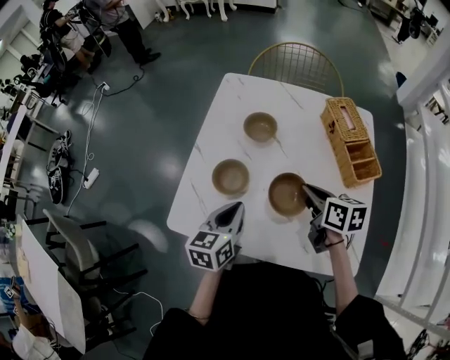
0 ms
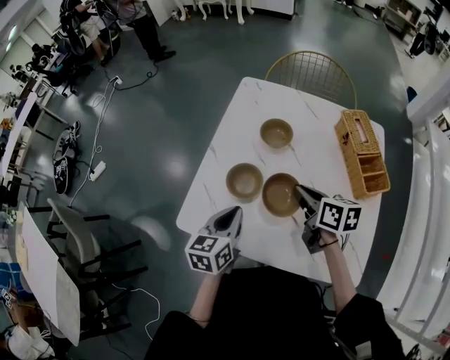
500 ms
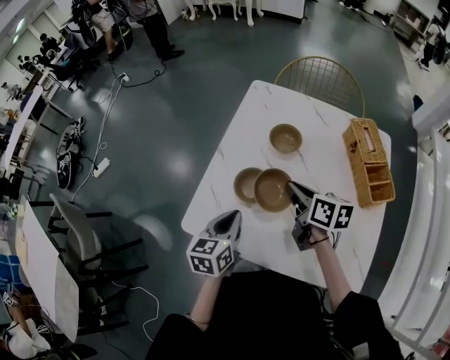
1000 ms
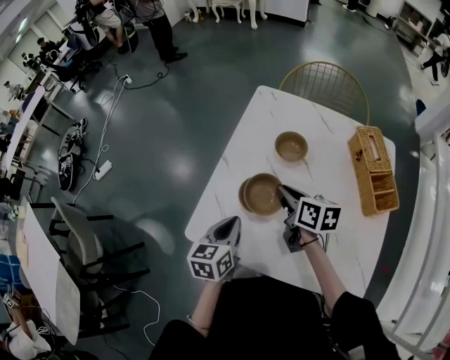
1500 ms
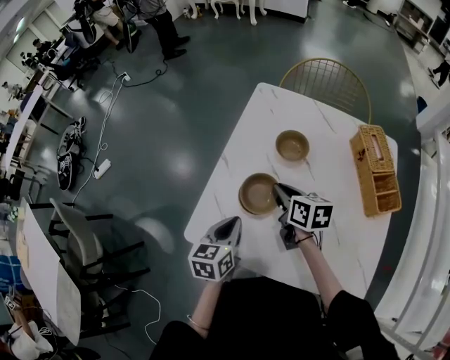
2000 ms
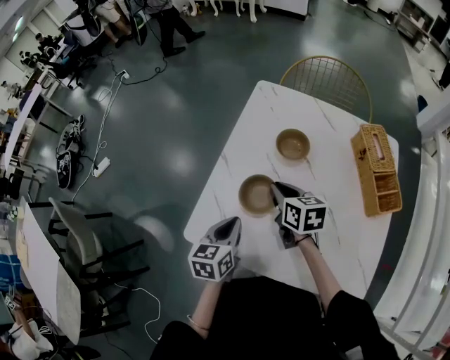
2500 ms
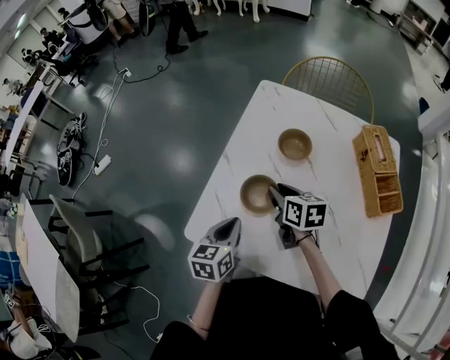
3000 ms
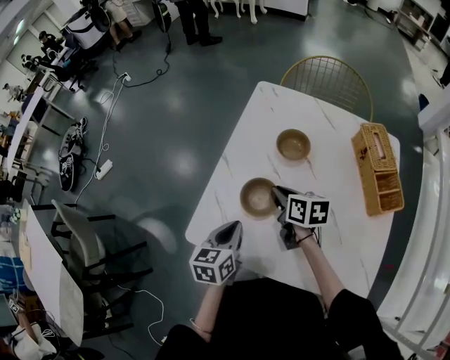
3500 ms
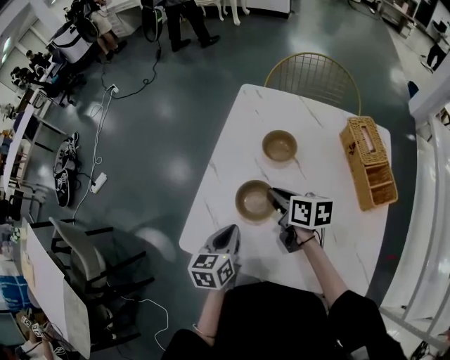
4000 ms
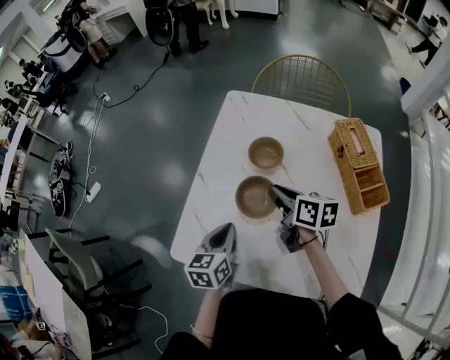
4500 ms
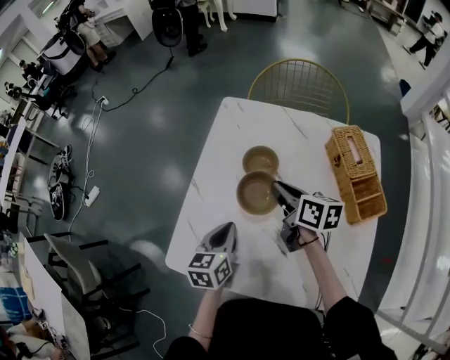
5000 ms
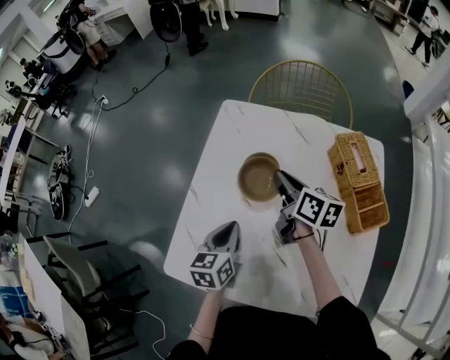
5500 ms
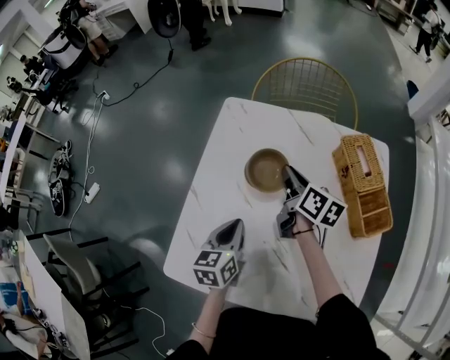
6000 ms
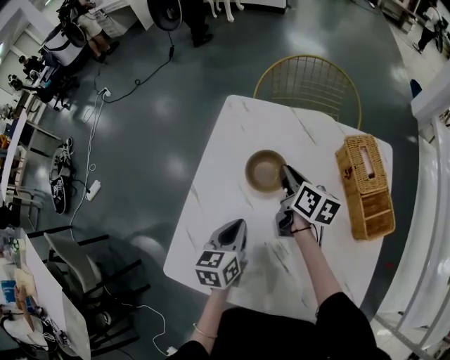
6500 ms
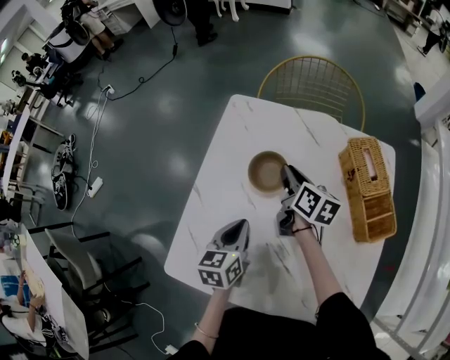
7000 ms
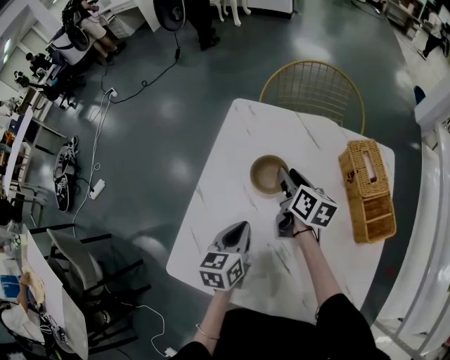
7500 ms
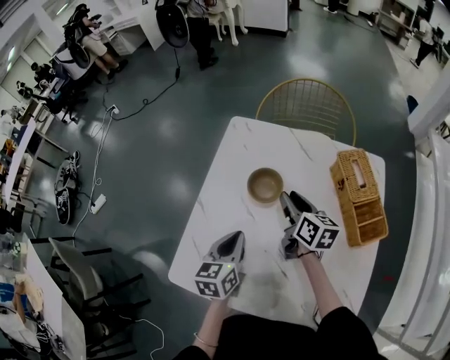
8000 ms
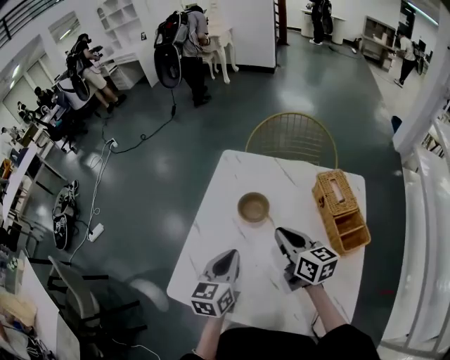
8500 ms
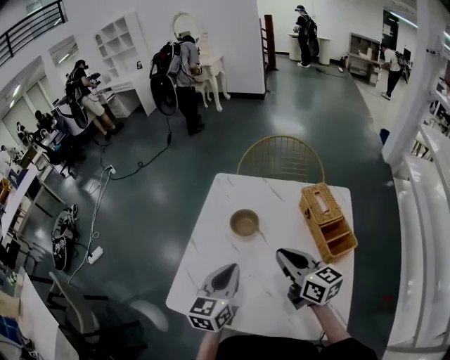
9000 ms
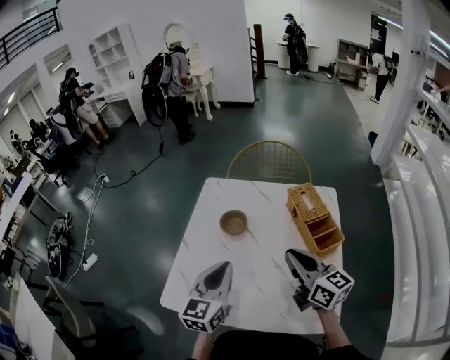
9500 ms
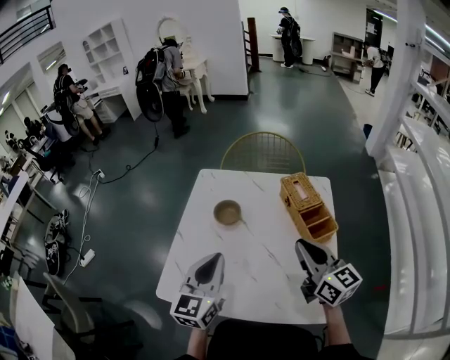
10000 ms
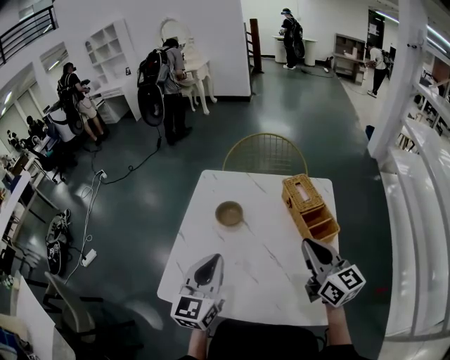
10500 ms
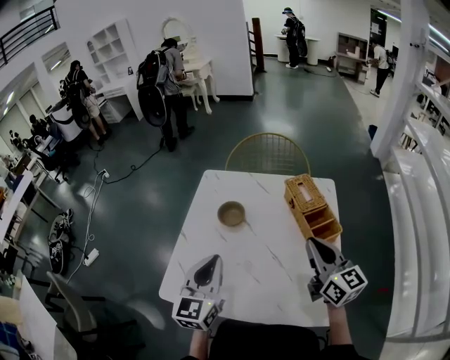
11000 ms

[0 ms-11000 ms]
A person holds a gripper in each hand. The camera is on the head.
0 ms to 2000 ms: The left gripper travels to the left by roughly 10 cm. The right gripper heads to the left and forward, covering approximately 20 cm.
2000 ms to 3500 ms: There are only small adjustments of the grippers.
3500 ms to 5500 ms: The left gripper travels forward and to the right by about 15 cm, while the right gripper moves to the right, forward and upward, about 20 cm, and swivels about 20 degrees.
5500 ms to 7500 ms: The right gripper moves approximately 5 cm, and opens.
7500 ms to 9000 ms: The left gripper heads upward and backward, covering about 15 cm, and turns by some 20 degrees. The right gripper moves backward and upward, approximately 25 cm, rotates roughly 30 degrees, and closes.
9000 ms to 11000 ms: The left gripper travels upward by approximately 5 cm, while the right gripper goes about 15 cm to the right, backward and upward, and rotates roughly 20 degrees.

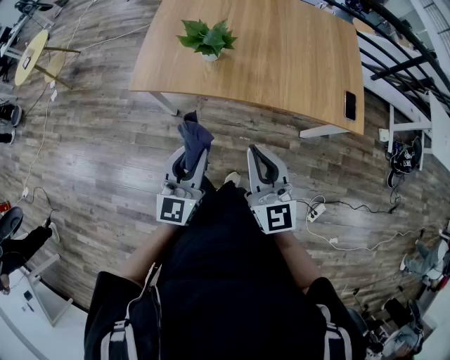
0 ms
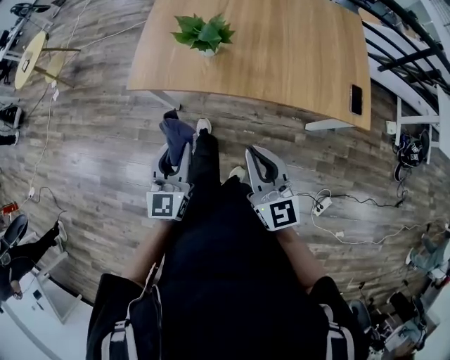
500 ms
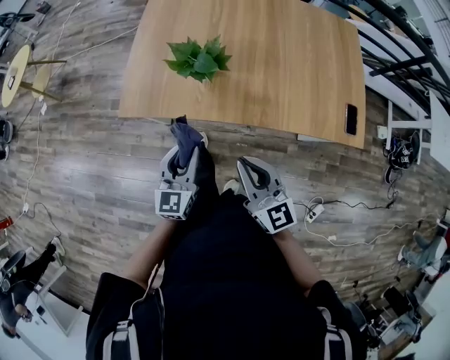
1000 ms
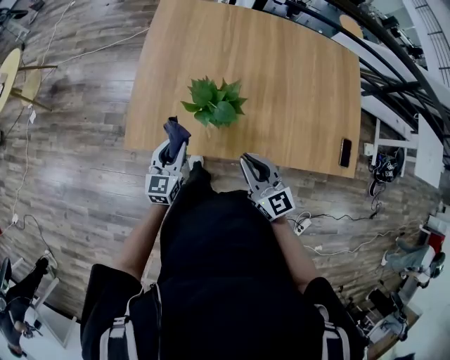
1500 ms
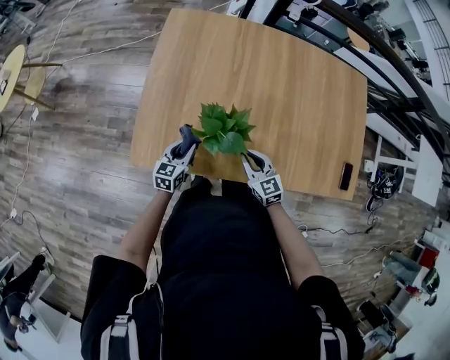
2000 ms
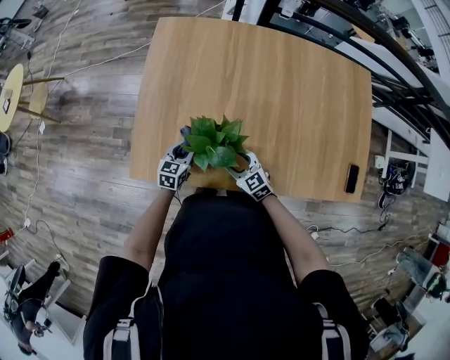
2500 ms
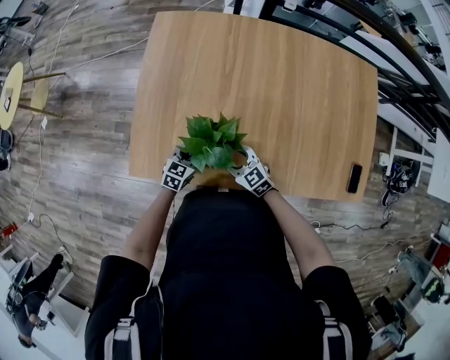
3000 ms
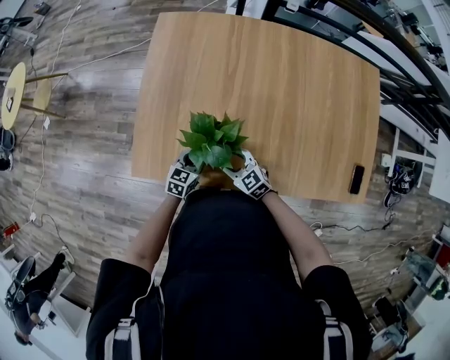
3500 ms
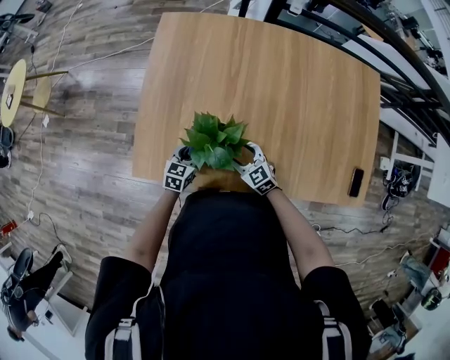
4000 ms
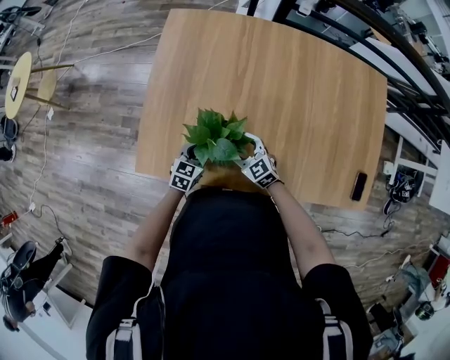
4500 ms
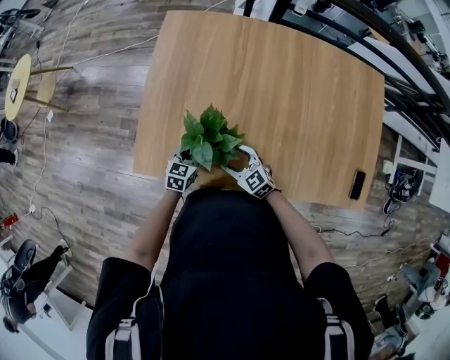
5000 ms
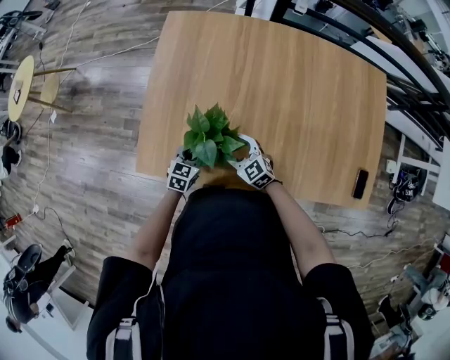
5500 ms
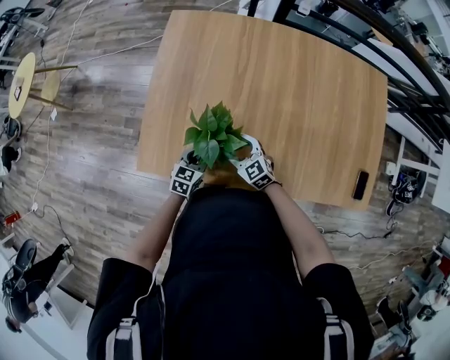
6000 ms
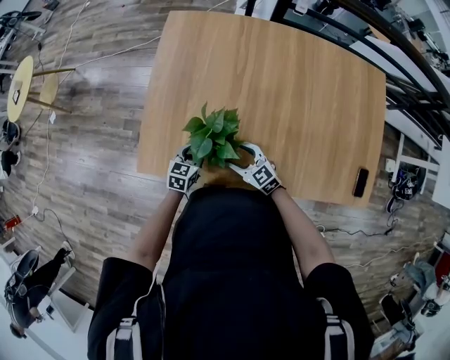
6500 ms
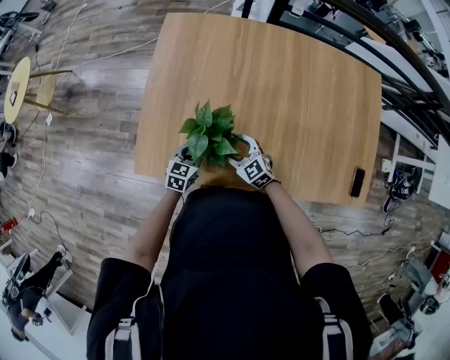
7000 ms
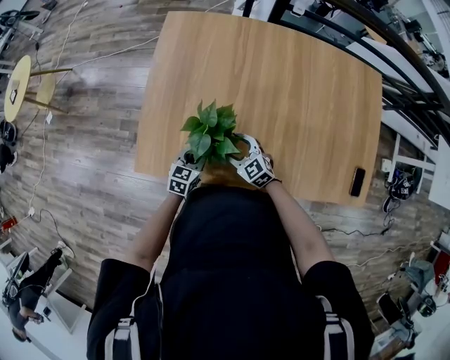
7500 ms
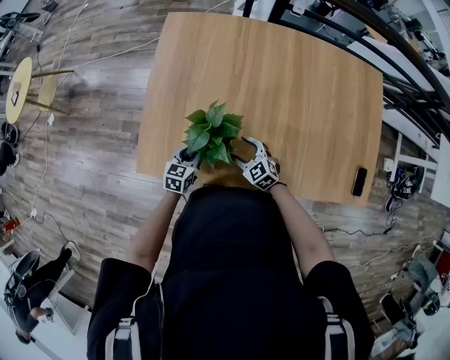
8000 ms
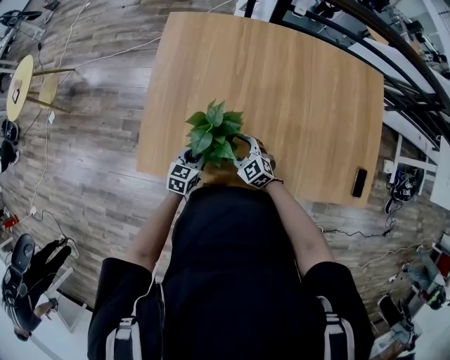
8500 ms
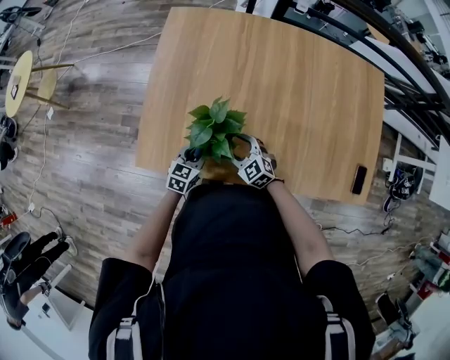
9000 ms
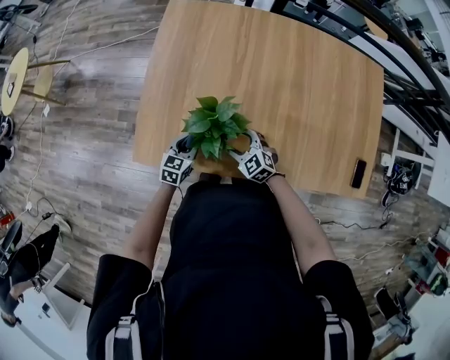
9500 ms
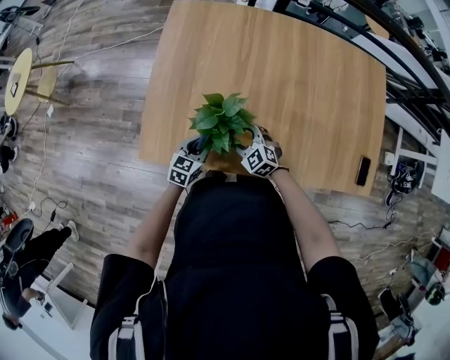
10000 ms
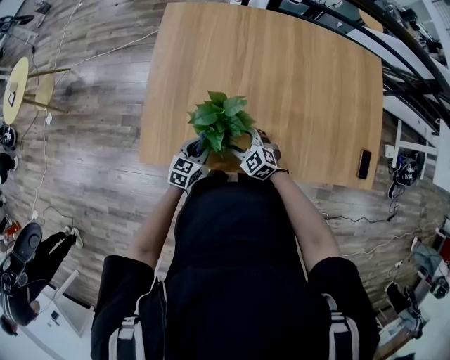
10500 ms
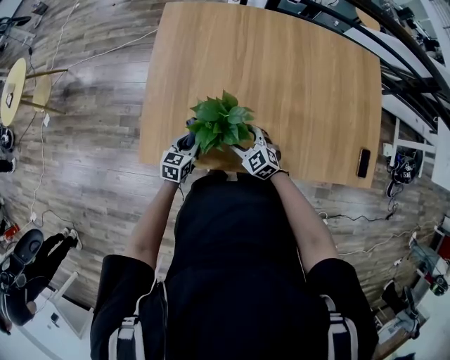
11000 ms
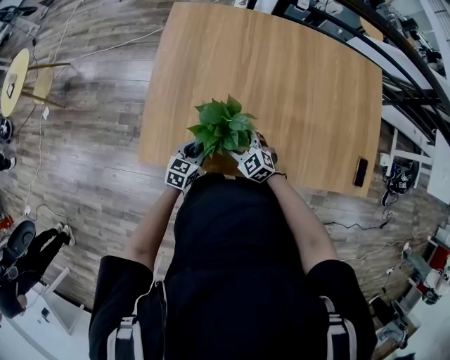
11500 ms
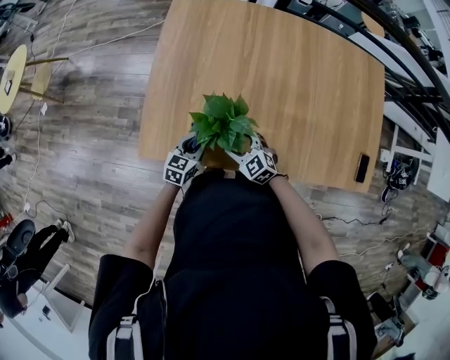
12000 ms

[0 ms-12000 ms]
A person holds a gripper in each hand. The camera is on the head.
0 ms to 2000 ms: The grippers both shift forward and downward by approximately 40 cm. The right gripper turns by some 30 degrees, while the left gripper changes its angle by approximately 30 degrees.
2000 ms to 4000 ms: The right gripper heads downward, covering roughly 5 cm, and opens up. Meanwhile the left gripper changes place by roughly 5 cm.
4000 ms to 10000 ms: The grippers make only small movements.
10000 ms to 12000 ms: The grippers stay close to where they were, moving slightly.

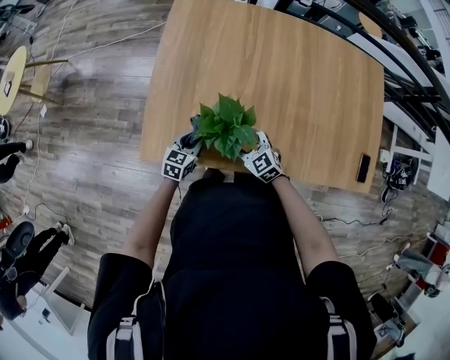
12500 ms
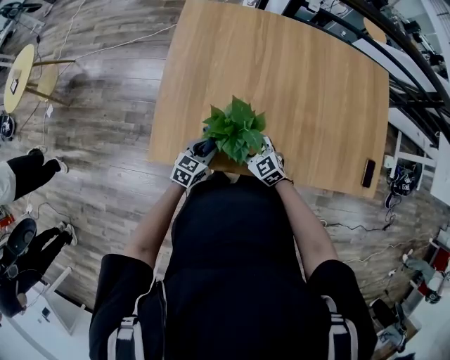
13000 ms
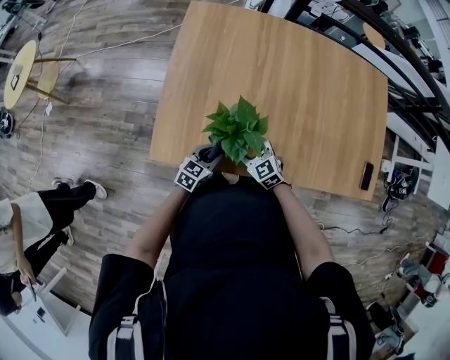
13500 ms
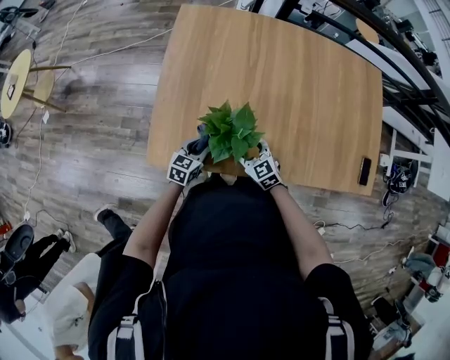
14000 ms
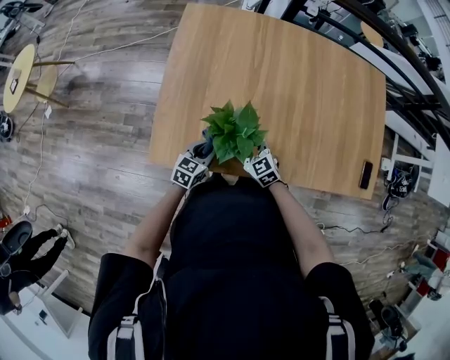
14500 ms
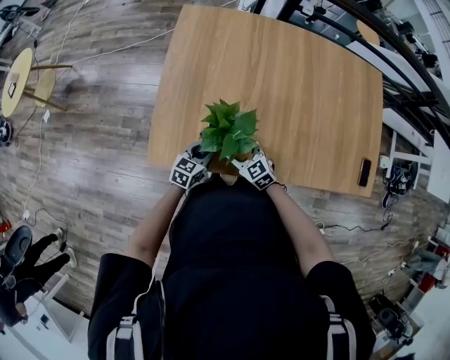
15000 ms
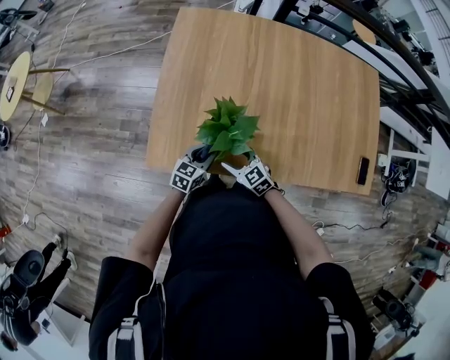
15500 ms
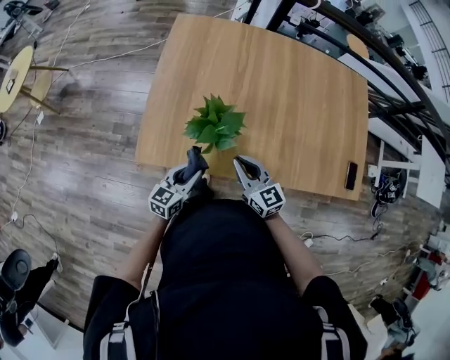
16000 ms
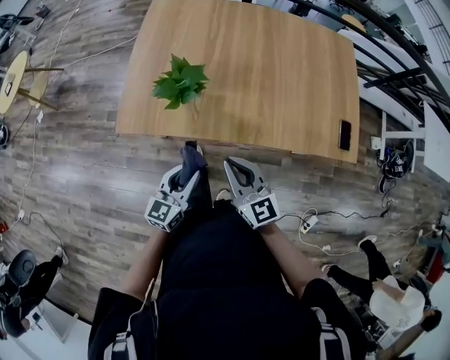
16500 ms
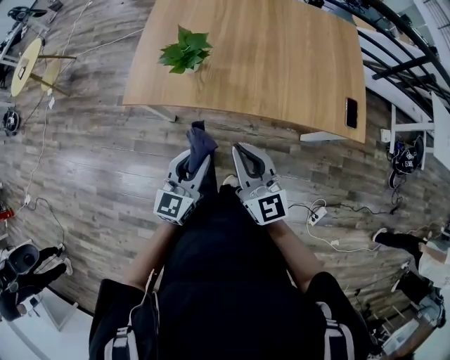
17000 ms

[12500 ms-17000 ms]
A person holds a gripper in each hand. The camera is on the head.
12500 ms to 14500 ms: The grippers make only small movements.
14500 ms to 17000 ms: Both grippers move backward, upward and to the right, some 40 cm. The right gripper tilts its fingers some 40 degrees upward, and closes its fingers; the left gripper rotates approximately 30 degrees.
